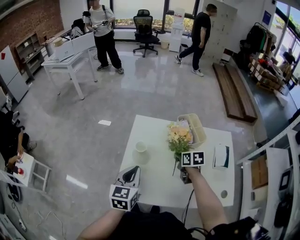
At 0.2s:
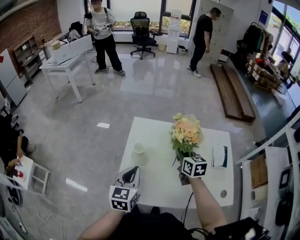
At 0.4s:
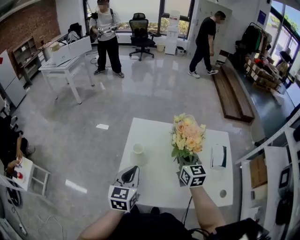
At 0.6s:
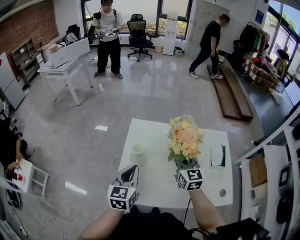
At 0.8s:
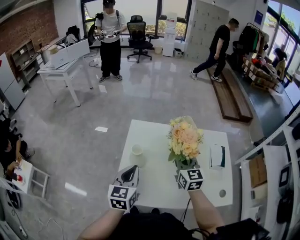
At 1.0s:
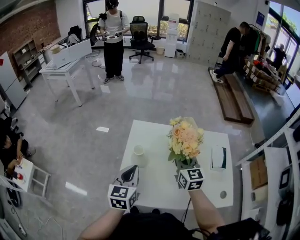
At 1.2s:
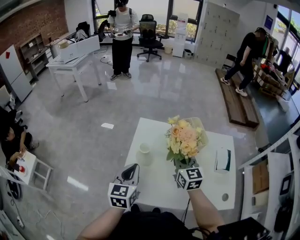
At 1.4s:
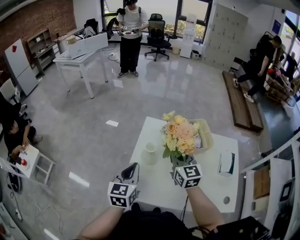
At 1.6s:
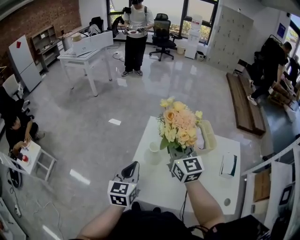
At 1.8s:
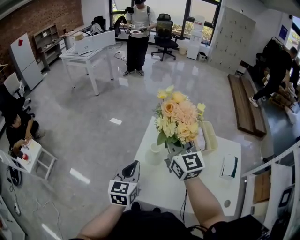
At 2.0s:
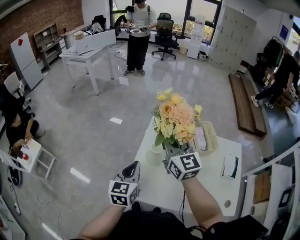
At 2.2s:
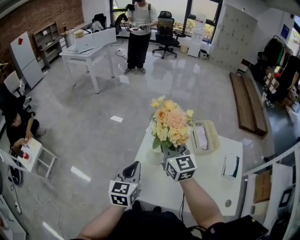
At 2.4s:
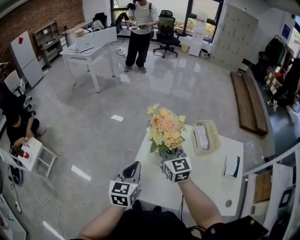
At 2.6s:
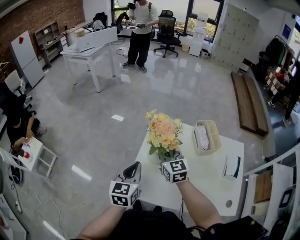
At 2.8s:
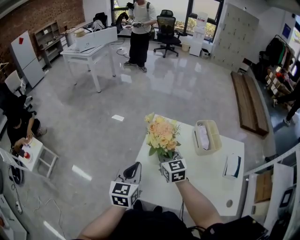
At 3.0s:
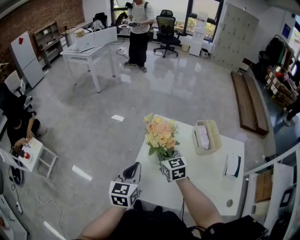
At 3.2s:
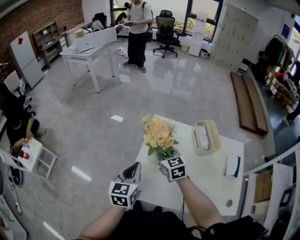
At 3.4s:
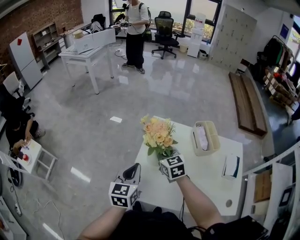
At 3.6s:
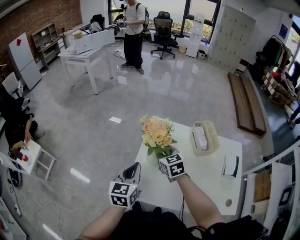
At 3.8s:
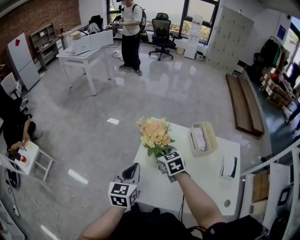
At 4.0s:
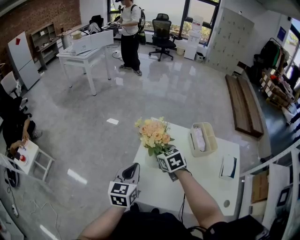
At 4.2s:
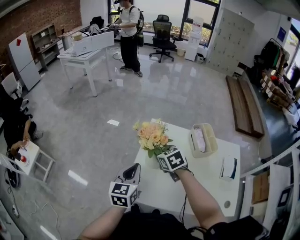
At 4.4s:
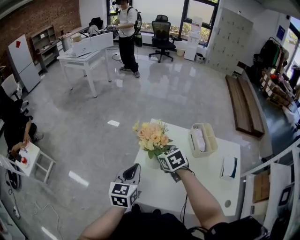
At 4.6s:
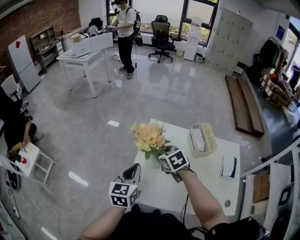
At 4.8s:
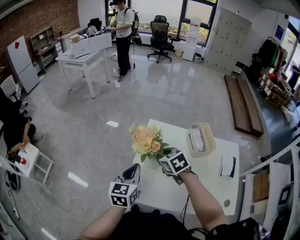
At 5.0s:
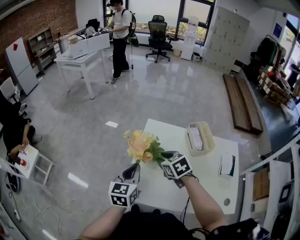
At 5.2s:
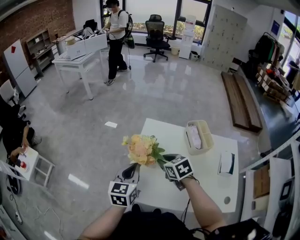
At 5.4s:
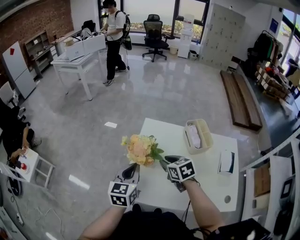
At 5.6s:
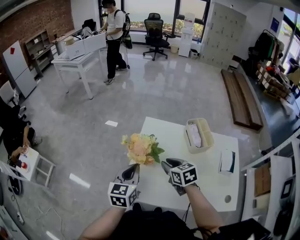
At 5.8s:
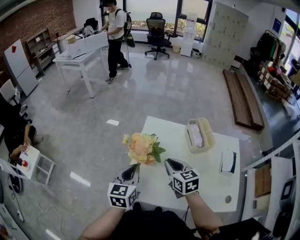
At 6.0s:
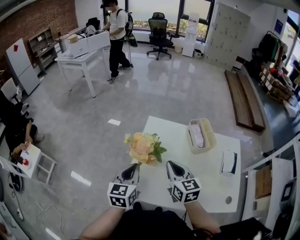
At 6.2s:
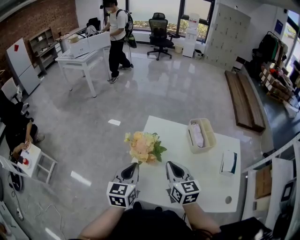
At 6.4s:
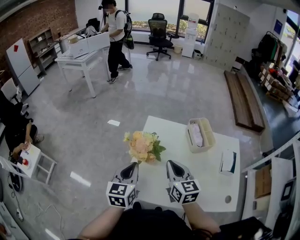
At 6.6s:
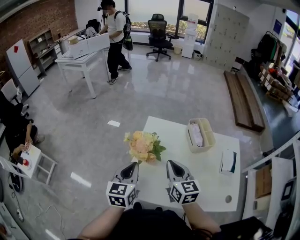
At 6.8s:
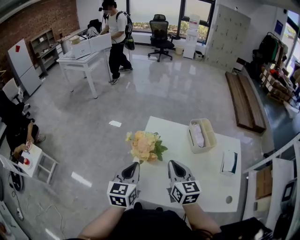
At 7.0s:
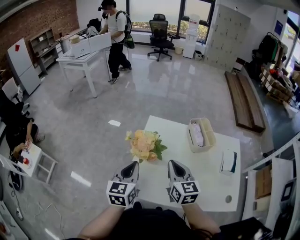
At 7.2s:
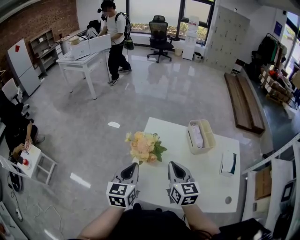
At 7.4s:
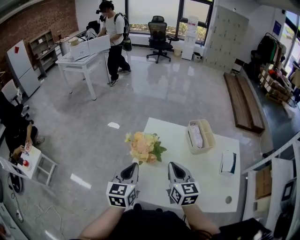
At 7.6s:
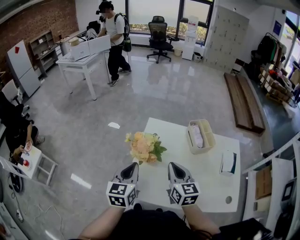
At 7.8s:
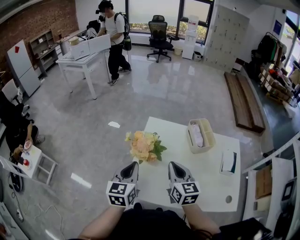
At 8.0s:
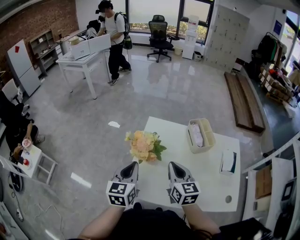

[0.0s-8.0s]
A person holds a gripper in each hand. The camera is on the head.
0.0s to 1.6s: The left gripper moves to the left, about 5 cm. Meanwhile the right gripper travels upward and to the left by approximately 25 cm, and tips its fingers upward by approximately 50 degrees.
1.6s to 3.2s: The right gripper moves downward, approximately 15 cm, and changes its angle by roughly 20 degrees.
3.2s to 4.8s: The right gripper rotates some 20 degrees.
4.8s to 6.4s: The right gripper goes approximately 10 cm backward and to the right, points its fingers about 30 degrees further upward, and closes.
6.4s to 8.0s: Both grippers stay put.

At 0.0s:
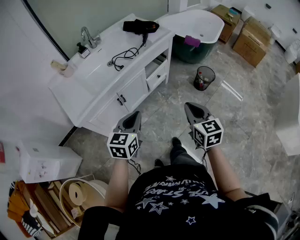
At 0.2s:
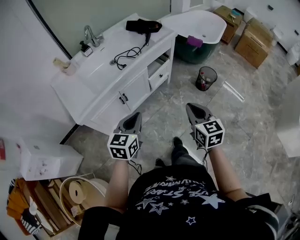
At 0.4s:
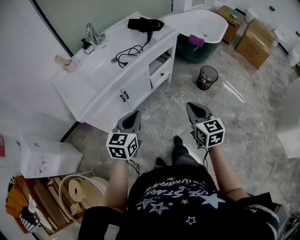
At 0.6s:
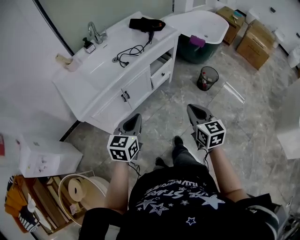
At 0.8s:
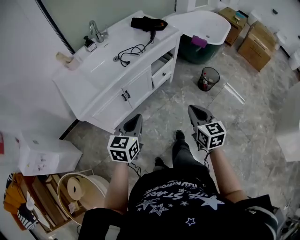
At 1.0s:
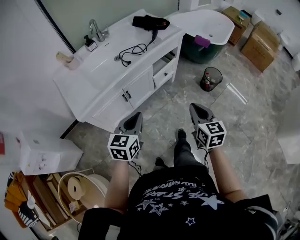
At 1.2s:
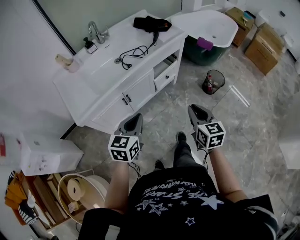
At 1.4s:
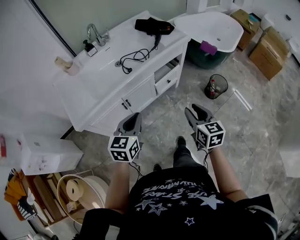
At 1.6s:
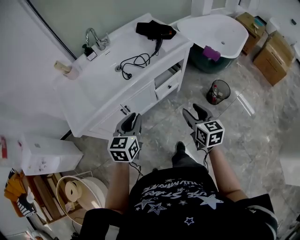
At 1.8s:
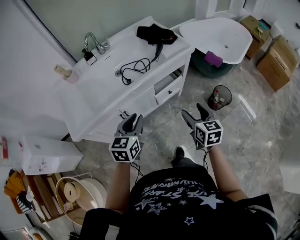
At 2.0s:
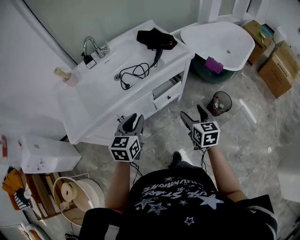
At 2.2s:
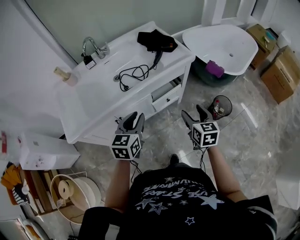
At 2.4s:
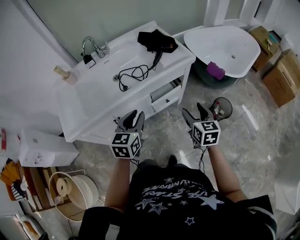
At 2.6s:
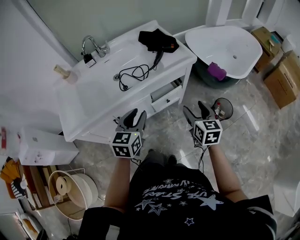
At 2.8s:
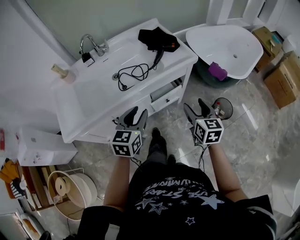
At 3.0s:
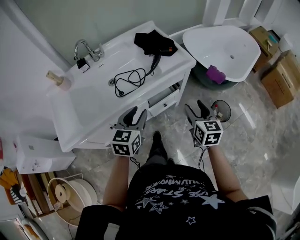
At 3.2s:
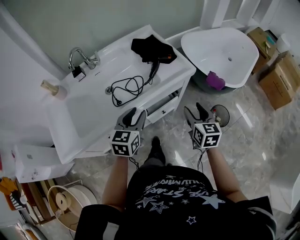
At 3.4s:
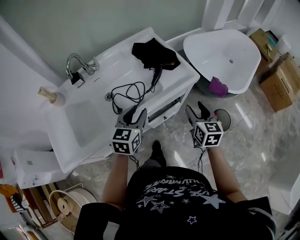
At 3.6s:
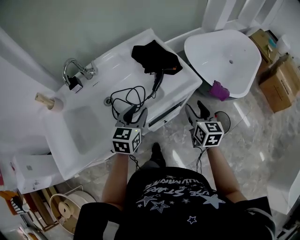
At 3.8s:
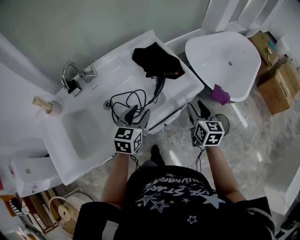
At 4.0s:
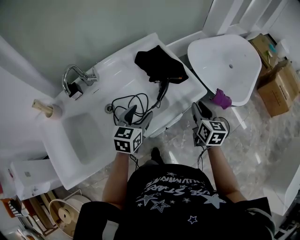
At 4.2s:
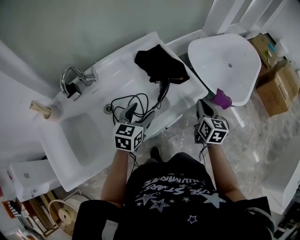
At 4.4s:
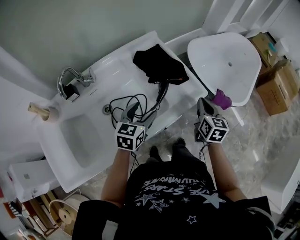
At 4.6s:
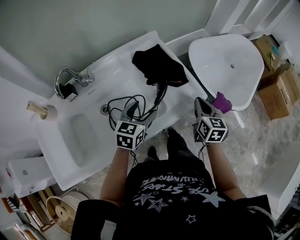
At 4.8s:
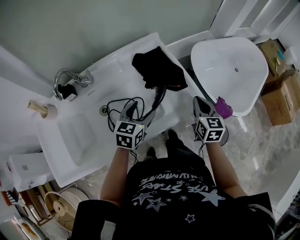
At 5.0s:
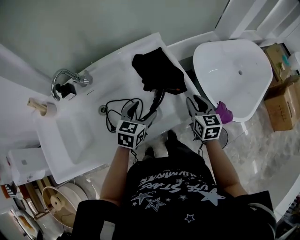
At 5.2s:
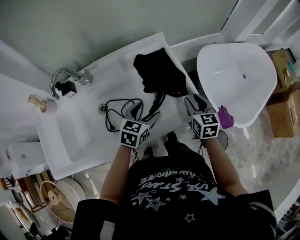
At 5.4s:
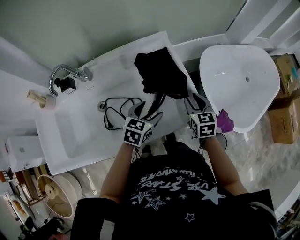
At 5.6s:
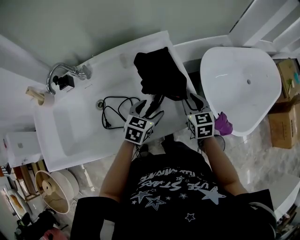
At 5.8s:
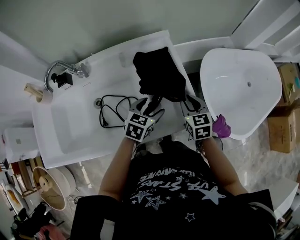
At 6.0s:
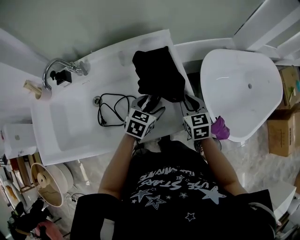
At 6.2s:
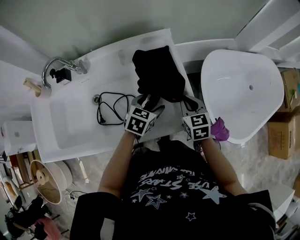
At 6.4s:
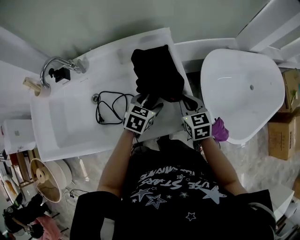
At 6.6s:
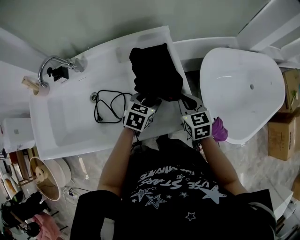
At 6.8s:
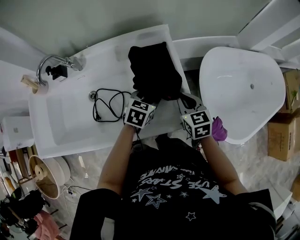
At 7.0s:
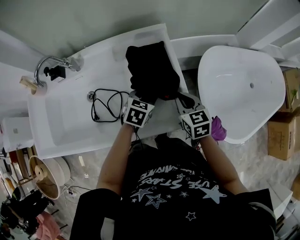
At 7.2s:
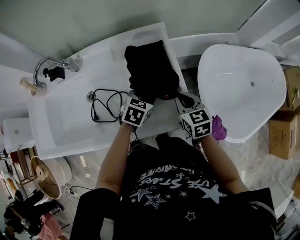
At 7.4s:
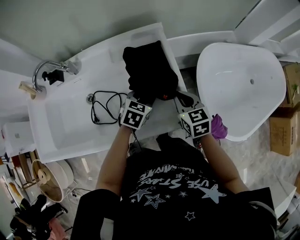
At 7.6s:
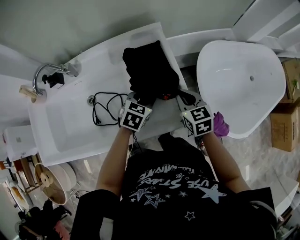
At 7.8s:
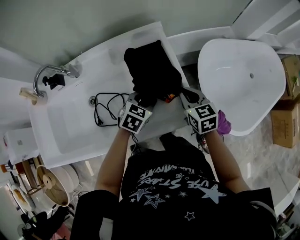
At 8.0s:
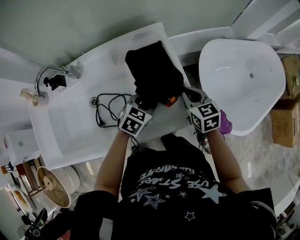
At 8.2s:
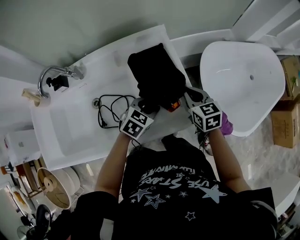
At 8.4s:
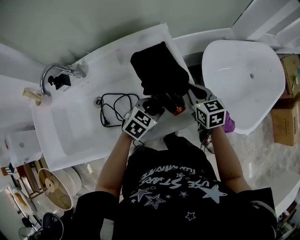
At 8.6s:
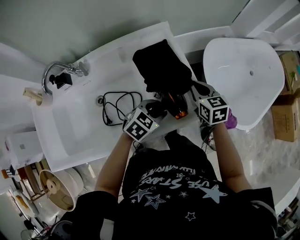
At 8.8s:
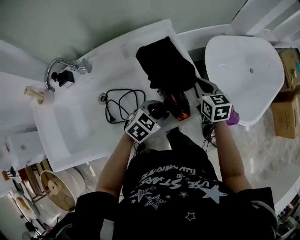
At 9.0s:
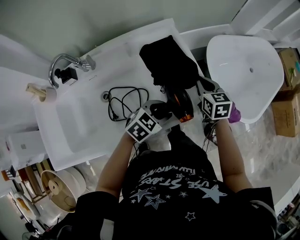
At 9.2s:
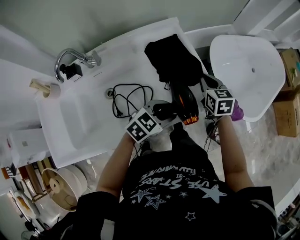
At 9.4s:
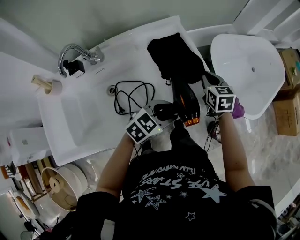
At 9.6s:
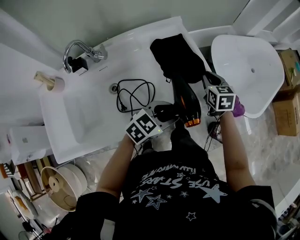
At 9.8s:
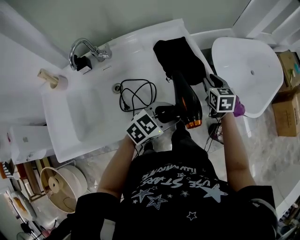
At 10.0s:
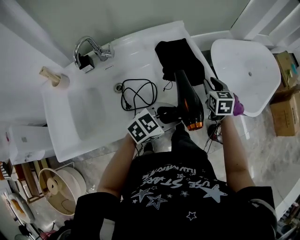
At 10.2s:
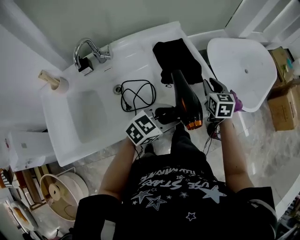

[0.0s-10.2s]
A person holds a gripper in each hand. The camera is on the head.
0.0s to 1.4s: Both grippers travel together forward, about 10 cm. The right gripper opens.
1.4s to 3.0s: The grippers both shift forward and to the right by about 25 cm. The right gripper opens up. The left gripper opens up.
3.0s to 4.4s: Both grippers travel together forward, approximately 25 cm. The left gripper opens, while the right gripper closes its fingers.
4.4s to 5.8s: The right gripper goes approximately 15 cm forward and downward, and changes its angle by approximately 40 degrees, while the left gripper shifts roughly 15 cm forward, to the right and downward.
5.8s to 7.2s: The left gripper moves approximately 5 cm, and closes its fingers.
7.2s to 8.8s: The left gripper heads backward, covering approximately 10 cm, and turns by some 30 degrees.
8.8s to 10.2s: The left gripper heads backward and upward, covering some 15 cm, and changes its angle by some 20 degrees. Meanwhile the right gripper is displaced backward by about 10 cm.

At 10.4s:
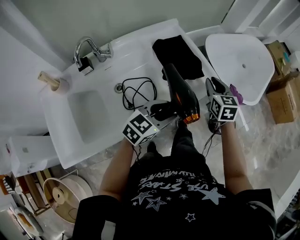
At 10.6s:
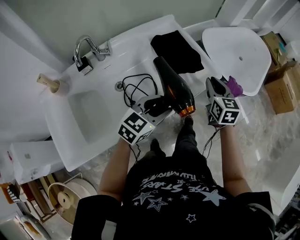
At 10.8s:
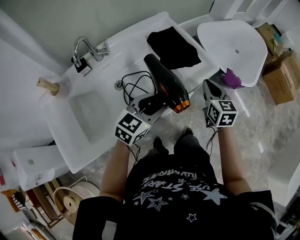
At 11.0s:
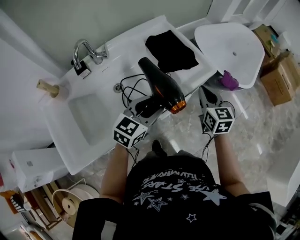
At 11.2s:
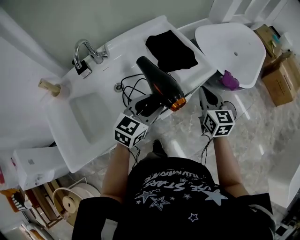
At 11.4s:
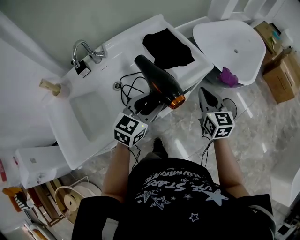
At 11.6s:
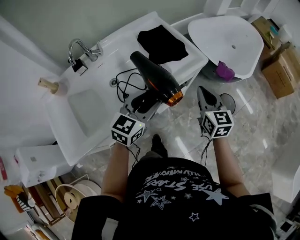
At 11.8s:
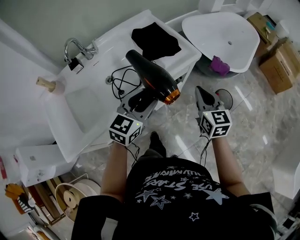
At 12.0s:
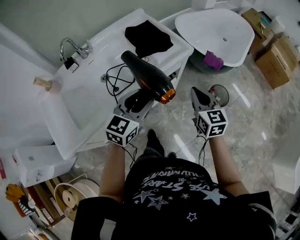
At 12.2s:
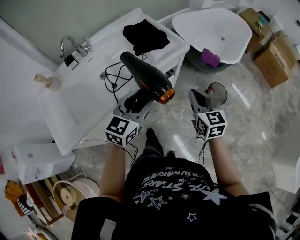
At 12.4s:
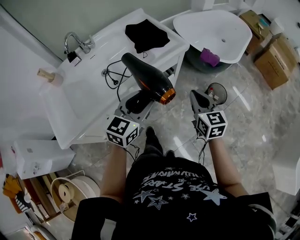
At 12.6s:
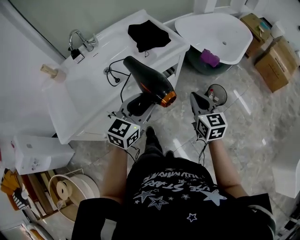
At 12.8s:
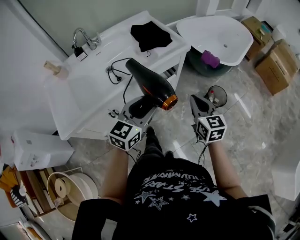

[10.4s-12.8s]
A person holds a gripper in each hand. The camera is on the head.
10.4s to 11.6s: The left gripper is displaced backward by roughly 5 cm. Meanwhile the right gripper shifts roughly 15 cm backward.
11.6s to 12.8s: The two grippers go some 20 cm backward and to the right.

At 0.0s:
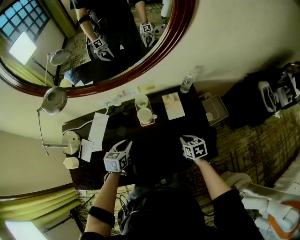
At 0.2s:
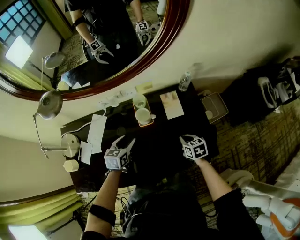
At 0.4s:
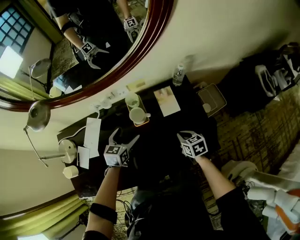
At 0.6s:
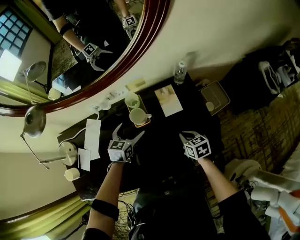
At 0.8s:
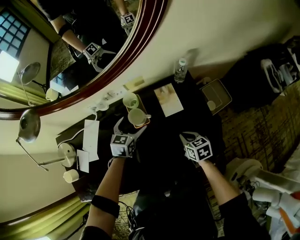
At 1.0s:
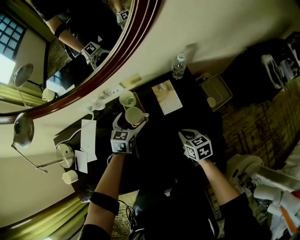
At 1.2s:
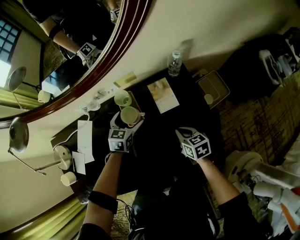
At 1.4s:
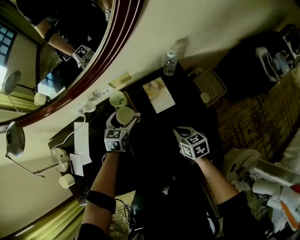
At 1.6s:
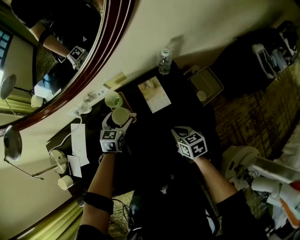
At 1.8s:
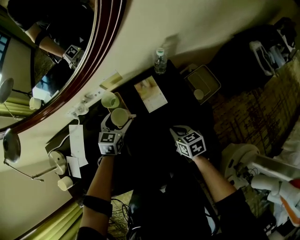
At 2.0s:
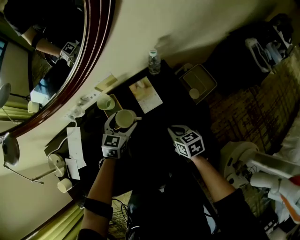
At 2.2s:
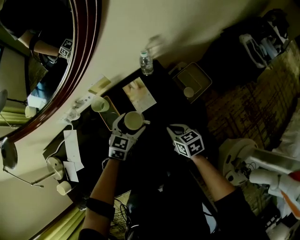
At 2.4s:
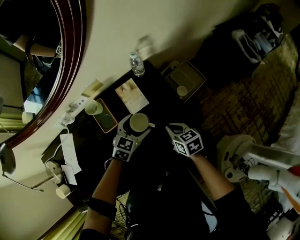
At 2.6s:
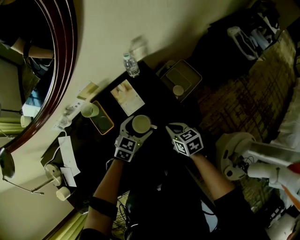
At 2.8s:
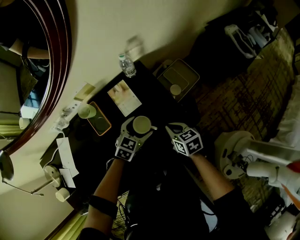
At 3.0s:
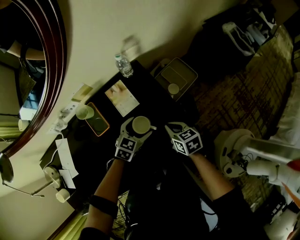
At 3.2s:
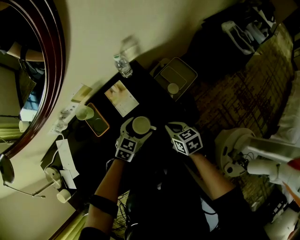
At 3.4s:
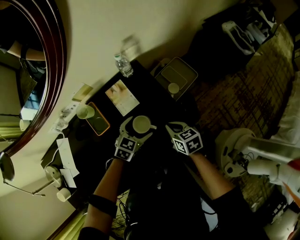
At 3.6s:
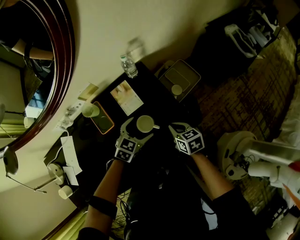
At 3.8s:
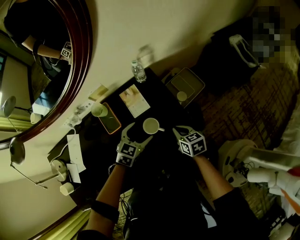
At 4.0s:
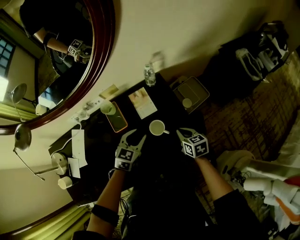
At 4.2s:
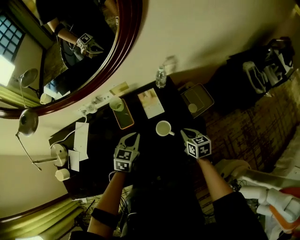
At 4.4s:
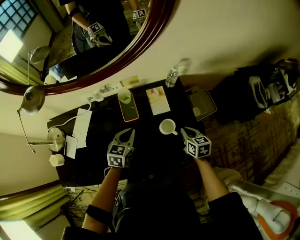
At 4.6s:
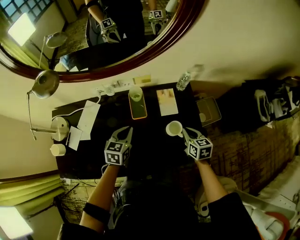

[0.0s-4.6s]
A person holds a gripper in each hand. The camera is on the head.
0.0s to 1.6s: The left gripper goes roughly 20 cm forward, to the right and downward, and opens its fingers.
1.6s to 3.0s: The left gripper moves to the right, roughly 25 cm, and swivels some 30 degrees; the right gripper is displaced to the right by approximately 10 cm.
3.0s to 4.6s: The left gripper moves to the left and upward, some 30 cm, rotates some 50 degrees, and closes its fingers. The right gripper is displaced upward and to the left by about 10 cm.
